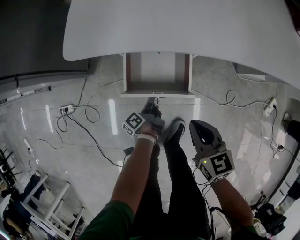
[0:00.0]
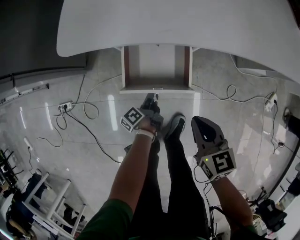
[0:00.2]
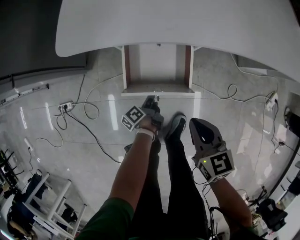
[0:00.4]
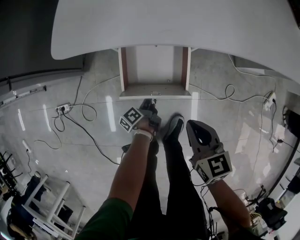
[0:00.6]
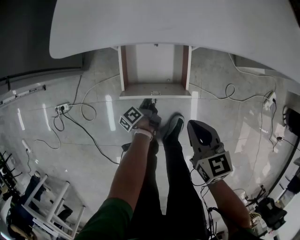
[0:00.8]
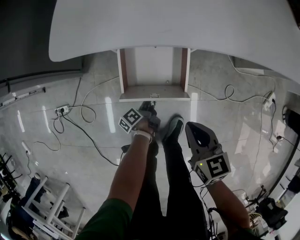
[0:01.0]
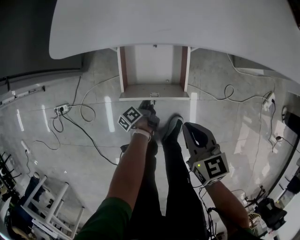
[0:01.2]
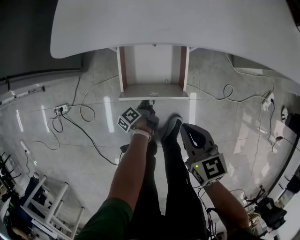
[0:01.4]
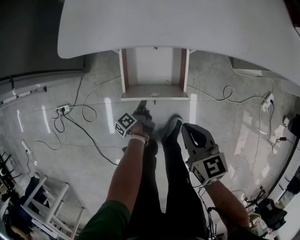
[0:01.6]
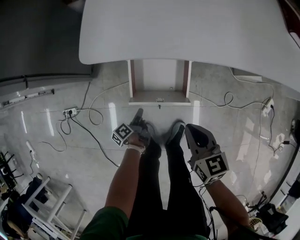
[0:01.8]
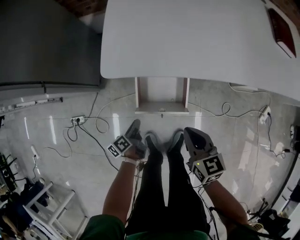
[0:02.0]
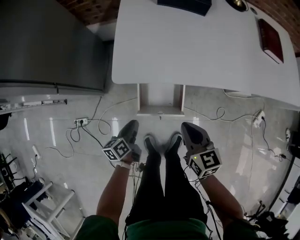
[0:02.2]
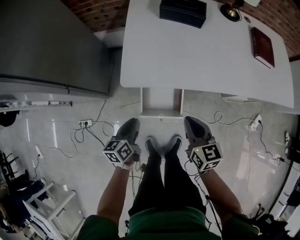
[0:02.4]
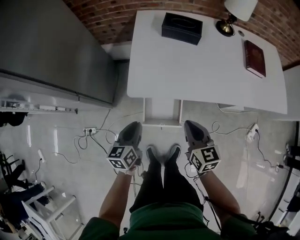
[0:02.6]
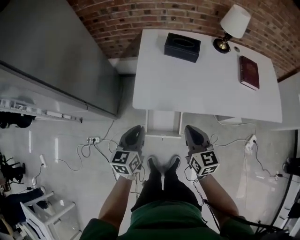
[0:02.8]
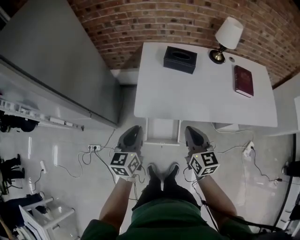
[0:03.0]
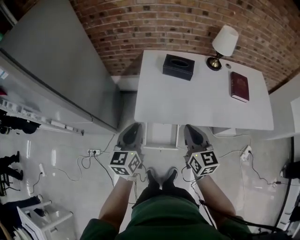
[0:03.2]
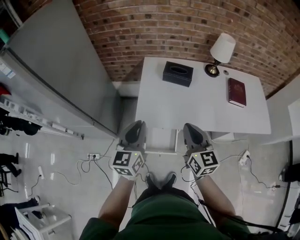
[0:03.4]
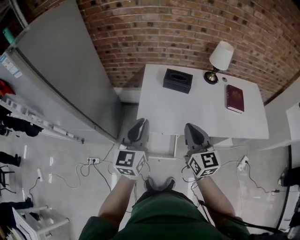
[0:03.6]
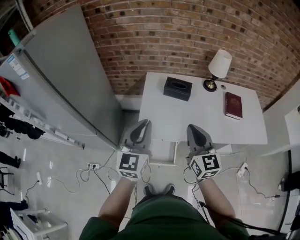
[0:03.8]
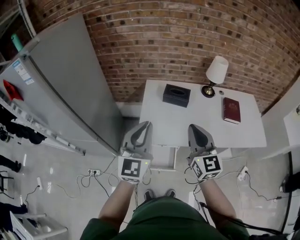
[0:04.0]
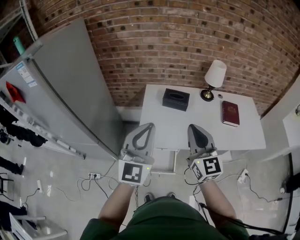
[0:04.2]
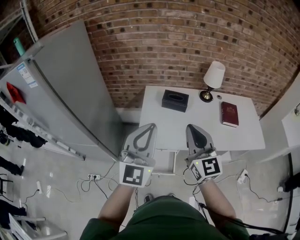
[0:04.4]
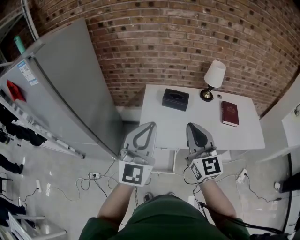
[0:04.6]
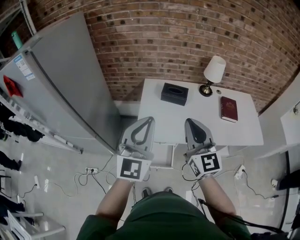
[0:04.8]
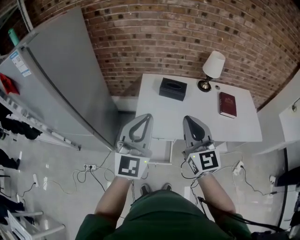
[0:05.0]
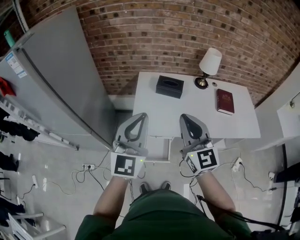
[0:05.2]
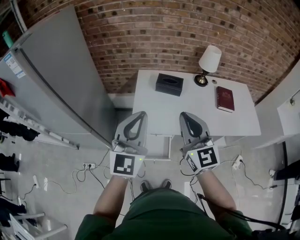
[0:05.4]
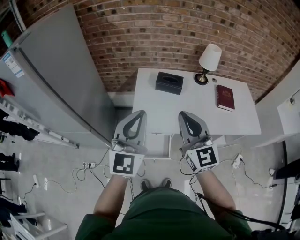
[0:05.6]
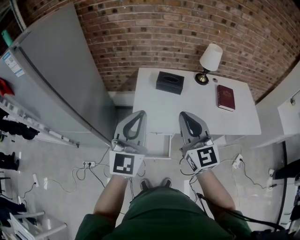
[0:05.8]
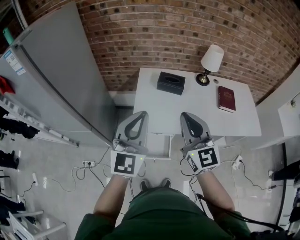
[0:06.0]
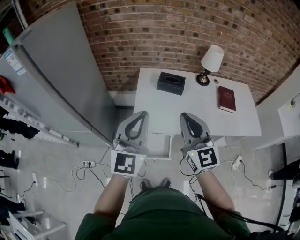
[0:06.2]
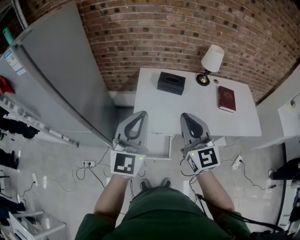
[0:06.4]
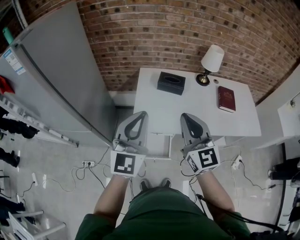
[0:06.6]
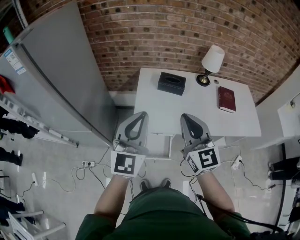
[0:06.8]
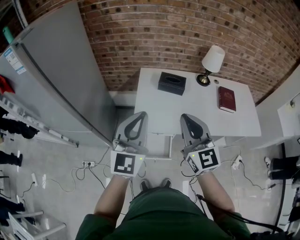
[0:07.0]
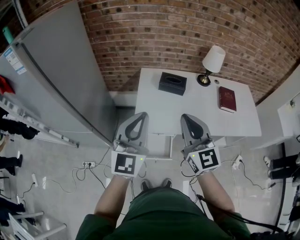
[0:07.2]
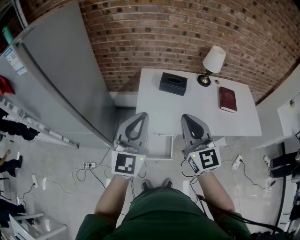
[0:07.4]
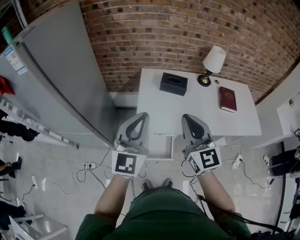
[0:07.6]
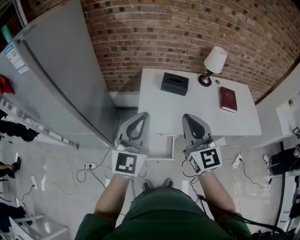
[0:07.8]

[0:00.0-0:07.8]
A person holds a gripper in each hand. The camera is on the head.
0:00.0 to 0:01.6: The left gripper shifts by approximately 5 cm.
0:01.6 to 0:03.2: The right gripper heads upward, covering about 40 cm, and changes its angle by about 30 degrees, while the left gripper moves upward, roughly 70 cm, and rolls clockwise, seen from behind, by about 70 degrees.
0:03.2 to 0:04.6: Both grippers move upward, some 25 cm. The right gripper swivels some 30 degrees, while the left gripper swivels approximately 40 degrees.
0:04.6 to 0:06.2: There are only small adjustments of the grippers.
0:06.2 to 0:07.8: The grippers stay close to where they were, moving slightly.

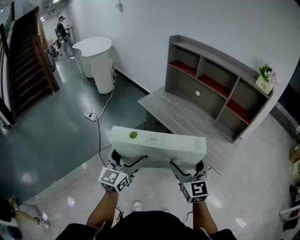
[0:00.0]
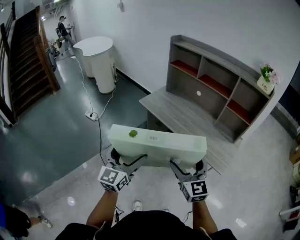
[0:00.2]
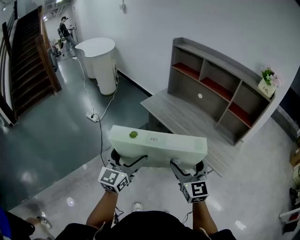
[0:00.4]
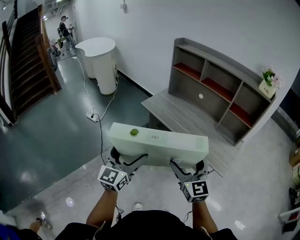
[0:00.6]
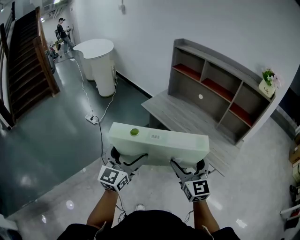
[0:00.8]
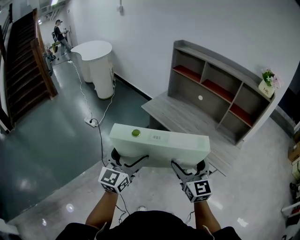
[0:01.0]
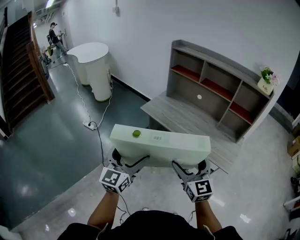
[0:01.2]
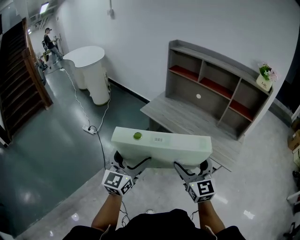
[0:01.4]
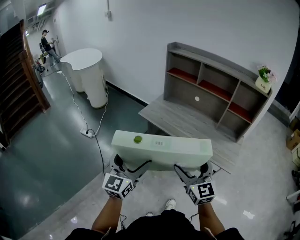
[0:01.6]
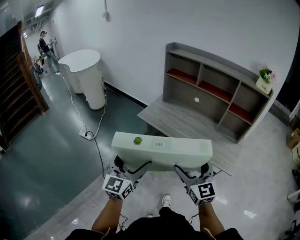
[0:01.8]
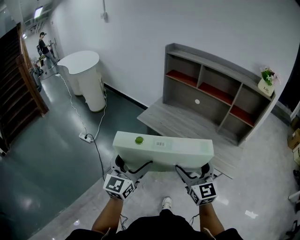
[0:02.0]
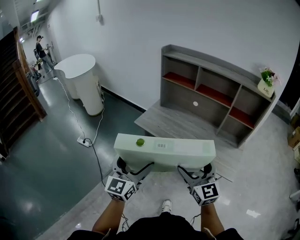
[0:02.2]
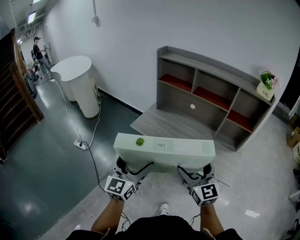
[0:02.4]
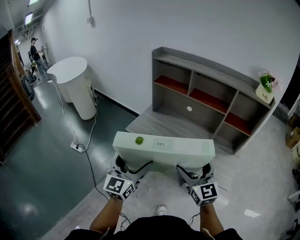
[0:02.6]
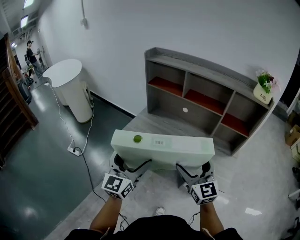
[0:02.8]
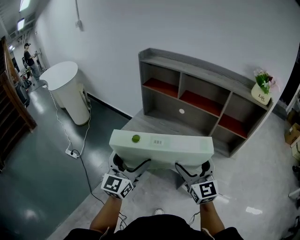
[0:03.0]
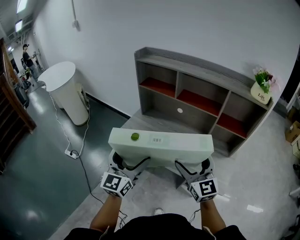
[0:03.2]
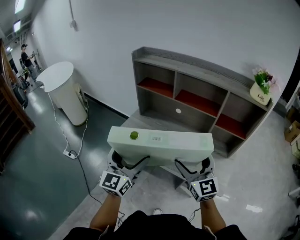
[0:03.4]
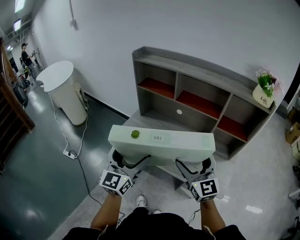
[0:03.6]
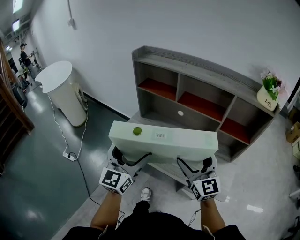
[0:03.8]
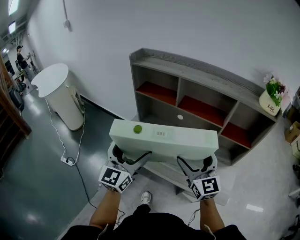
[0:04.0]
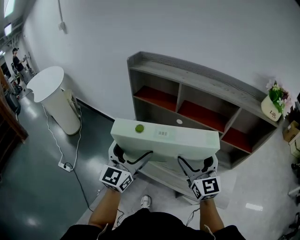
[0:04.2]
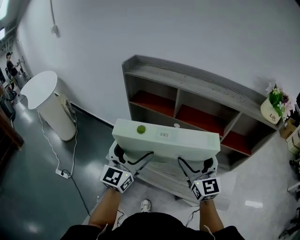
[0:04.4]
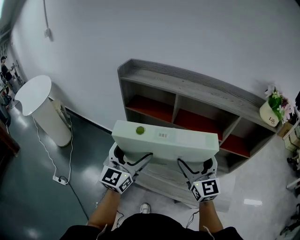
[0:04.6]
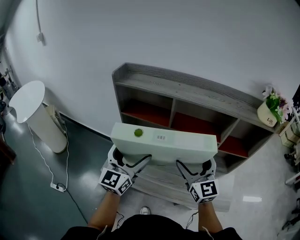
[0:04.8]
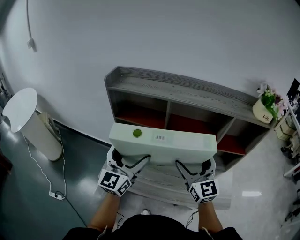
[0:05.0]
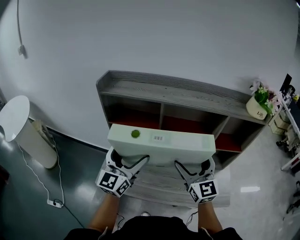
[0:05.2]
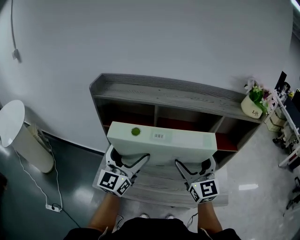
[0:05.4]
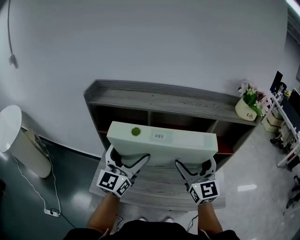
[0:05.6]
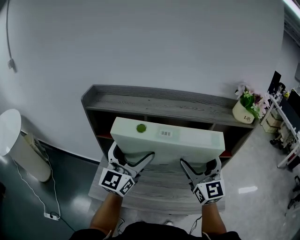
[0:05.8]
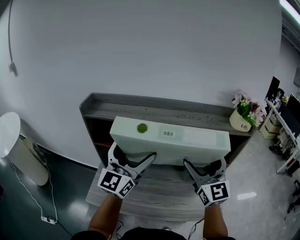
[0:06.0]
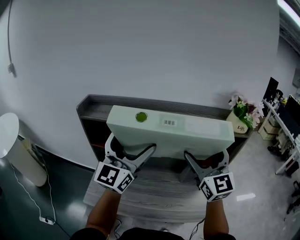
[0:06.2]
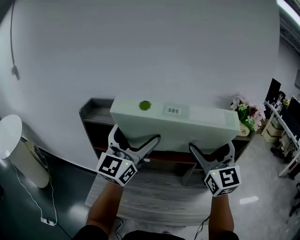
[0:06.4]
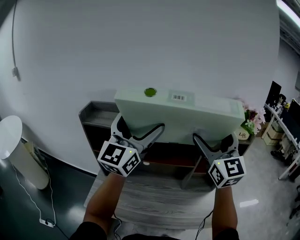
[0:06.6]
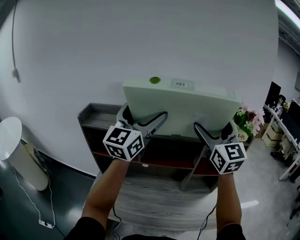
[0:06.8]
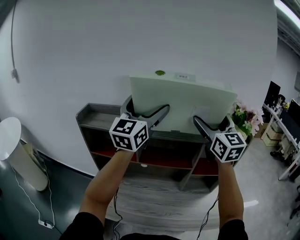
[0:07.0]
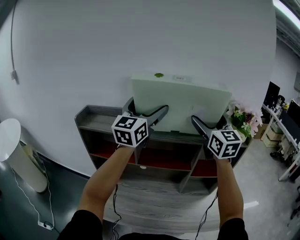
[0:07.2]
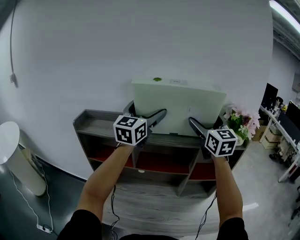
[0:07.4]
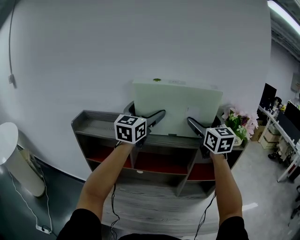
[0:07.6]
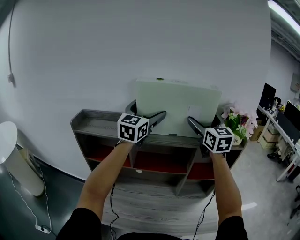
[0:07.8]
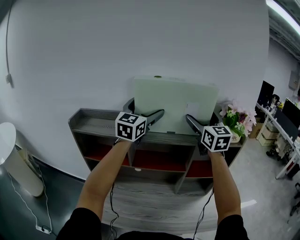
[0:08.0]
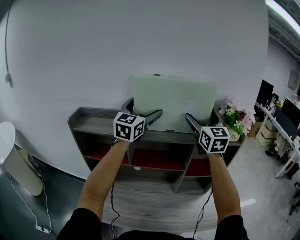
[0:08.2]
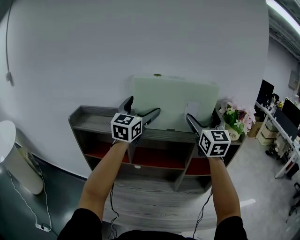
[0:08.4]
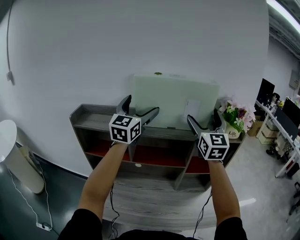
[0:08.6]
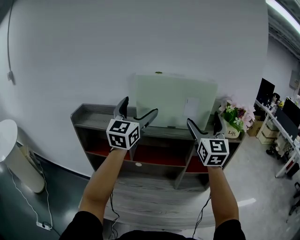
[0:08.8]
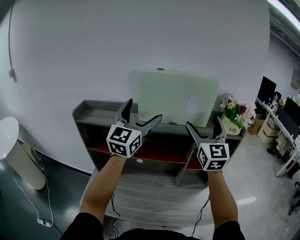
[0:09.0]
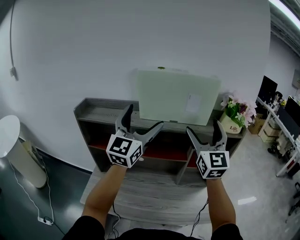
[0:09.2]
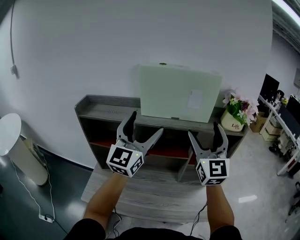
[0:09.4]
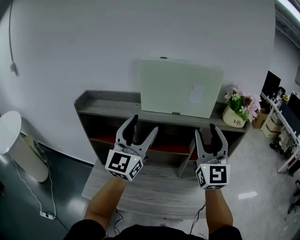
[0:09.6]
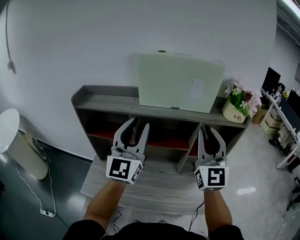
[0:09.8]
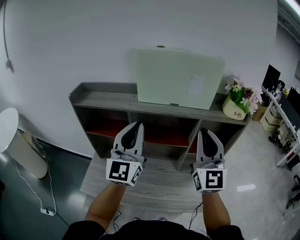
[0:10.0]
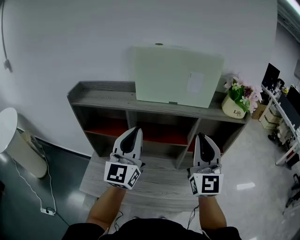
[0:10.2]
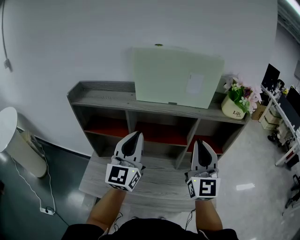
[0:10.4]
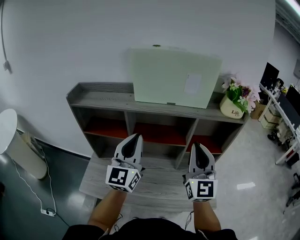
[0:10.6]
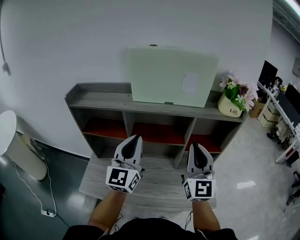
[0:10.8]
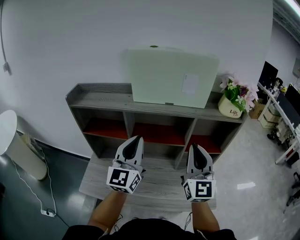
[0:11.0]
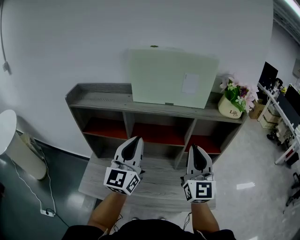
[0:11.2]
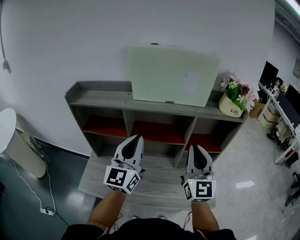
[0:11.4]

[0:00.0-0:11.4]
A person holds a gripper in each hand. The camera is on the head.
0:00.0 to 0:01.4: The two grippers go approximately 10 cm to the left.
0:01.4 to 0:02.8: The grippers both shift forward and to the right by approximately 20 cm.
0:02.8 to 0:04.2: The grippers both shift forward by roughly 20 cm.
0:04.2 to 0:05.6: The left gripper shifts some 15 cm forward, and swivels roughly 20 degrees. The right gripper is displaced forward by some 10 cm, and rotates some 20 degrees.
0:05.6 to 0:07.2: Both grippers travel together upward, forward and to the right, about 30 cm.
0:07.2 to 0:08.6: The grippers move only a little.
0:08.6 to 0:10.0: Both grippers travel together backward and downward, approximately 20 cm. The left gripper closes, while the right gripper closes its fingers.
0:10.0 to 0:11.4: Both grippers move downward, about 5 cm.

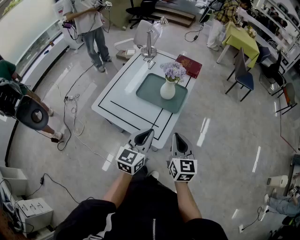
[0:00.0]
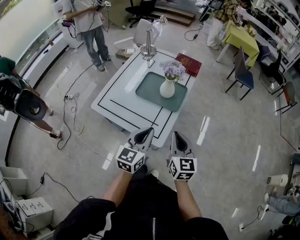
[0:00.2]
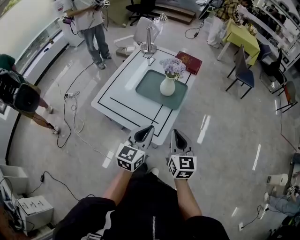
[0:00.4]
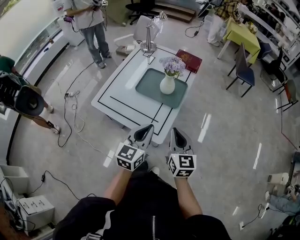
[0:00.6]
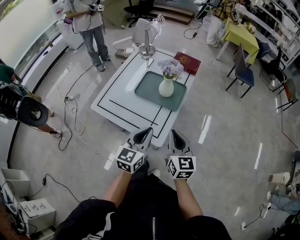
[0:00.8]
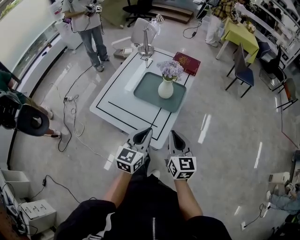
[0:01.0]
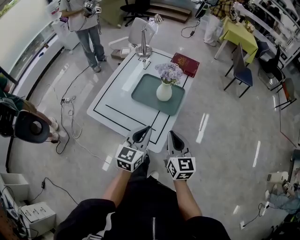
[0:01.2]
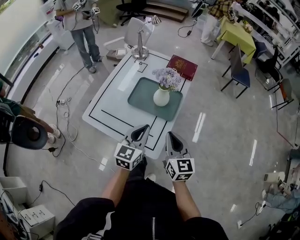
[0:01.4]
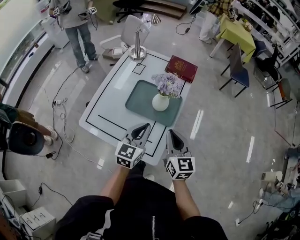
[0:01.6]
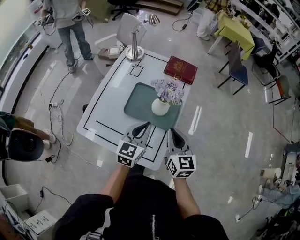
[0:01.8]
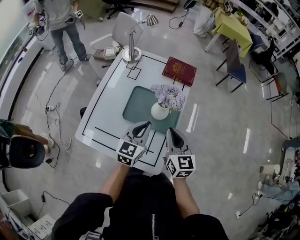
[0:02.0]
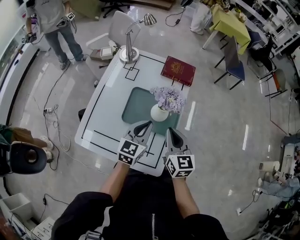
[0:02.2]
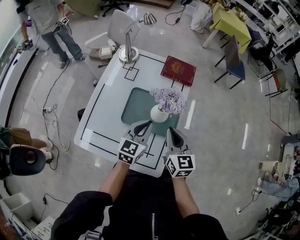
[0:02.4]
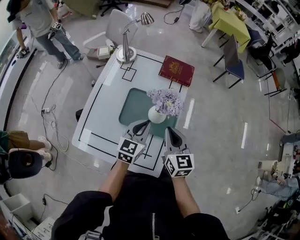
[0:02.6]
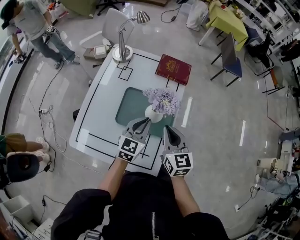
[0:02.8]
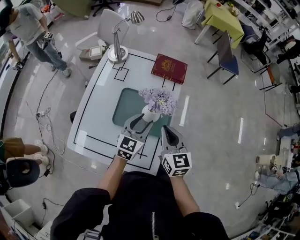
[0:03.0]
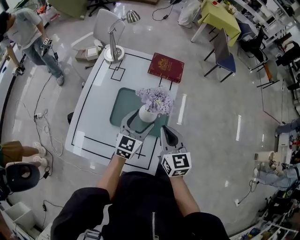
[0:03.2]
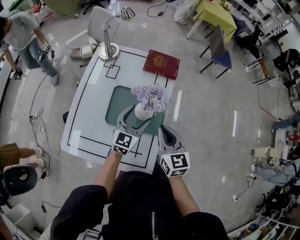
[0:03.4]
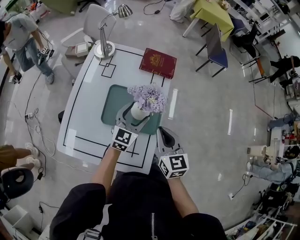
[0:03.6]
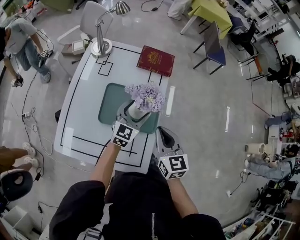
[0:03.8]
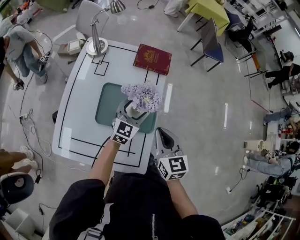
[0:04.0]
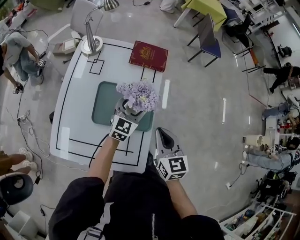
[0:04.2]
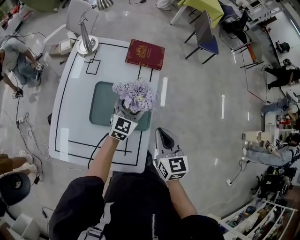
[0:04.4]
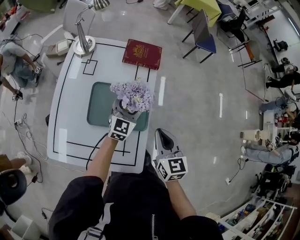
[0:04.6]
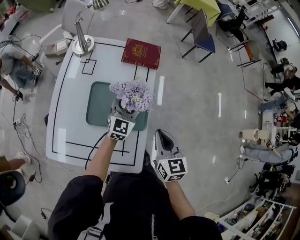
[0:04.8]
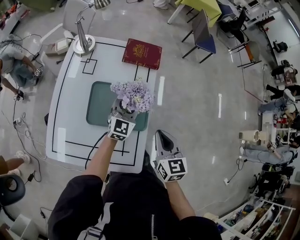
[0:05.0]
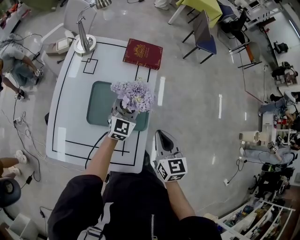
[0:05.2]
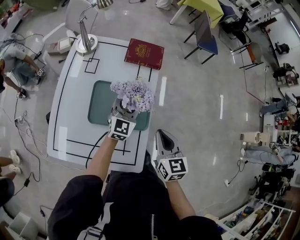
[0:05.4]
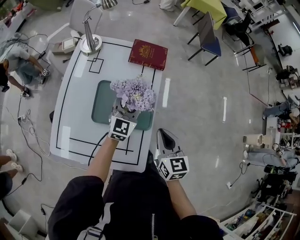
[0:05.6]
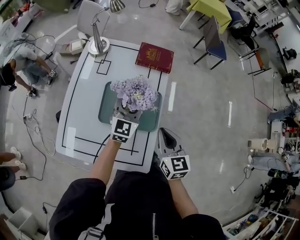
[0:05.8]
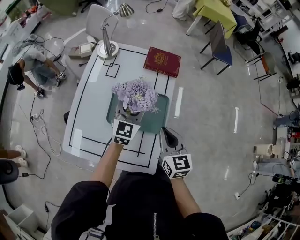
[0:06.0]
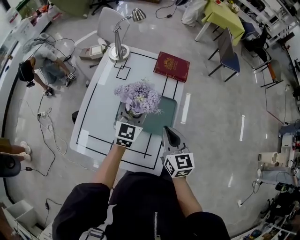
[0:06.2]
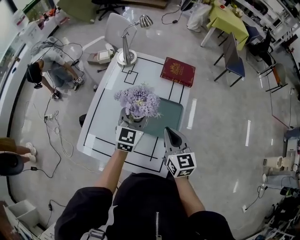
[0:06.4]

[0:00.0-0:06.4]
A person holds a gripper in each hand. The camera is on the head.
0:00.0 to 0:01.6: Both grippers move forward, about 15 cm.
0:01.6 to 0:03.2: Both grippers travel together forward, about 15 cm. The left gripper opens up.
0:03.2 to 0:04.8: The left gripper heads forward, covering roughly 10 cm, while the right gripper shifts roughly 5 cm to the right.
0:04.8 to 0:06.4: The right gripper shifts roughly 10 cm to the left. Meanwhile the left gripper travels to the left, upward and backward by approximately 15 cm.
